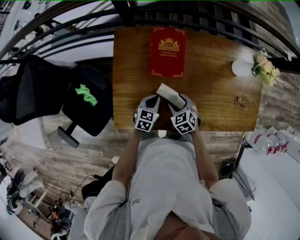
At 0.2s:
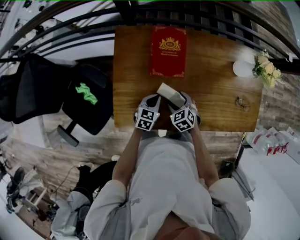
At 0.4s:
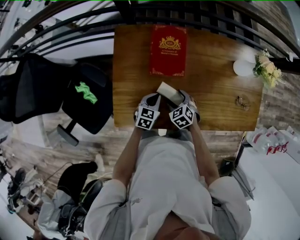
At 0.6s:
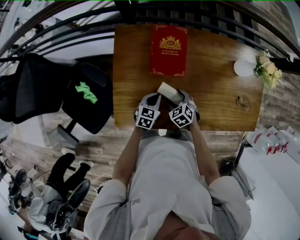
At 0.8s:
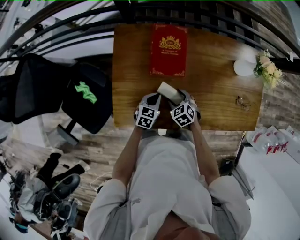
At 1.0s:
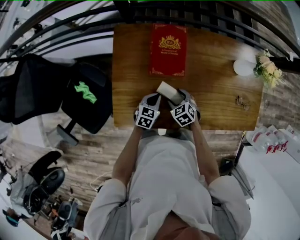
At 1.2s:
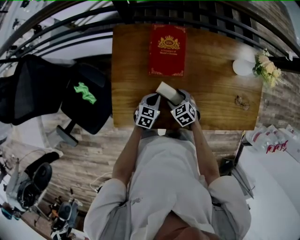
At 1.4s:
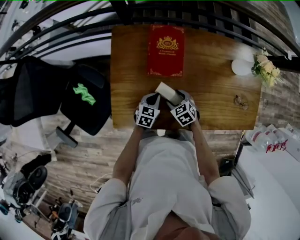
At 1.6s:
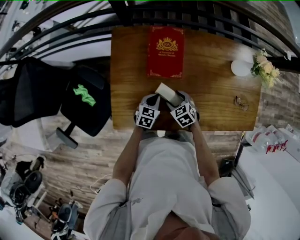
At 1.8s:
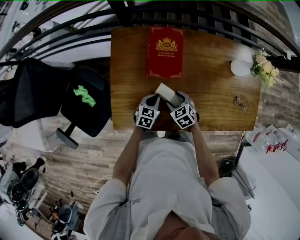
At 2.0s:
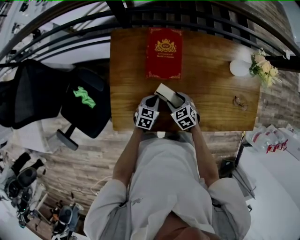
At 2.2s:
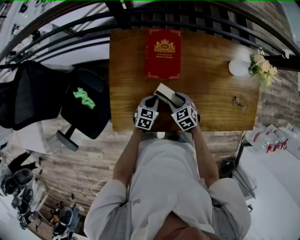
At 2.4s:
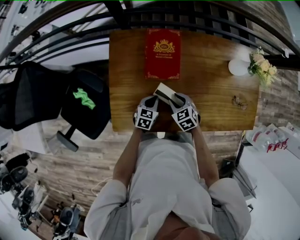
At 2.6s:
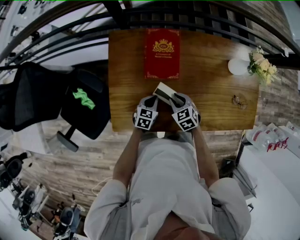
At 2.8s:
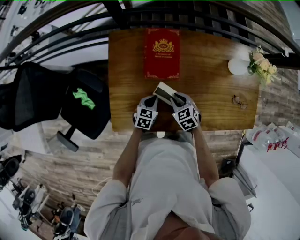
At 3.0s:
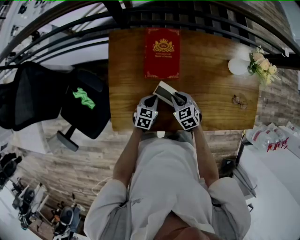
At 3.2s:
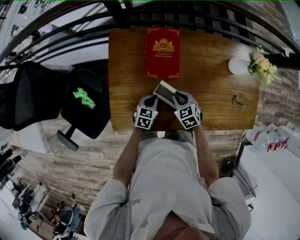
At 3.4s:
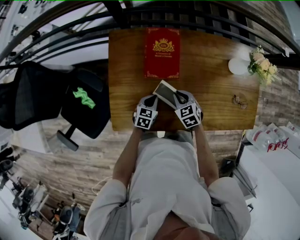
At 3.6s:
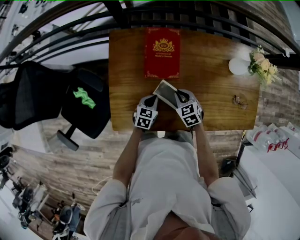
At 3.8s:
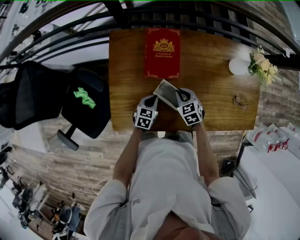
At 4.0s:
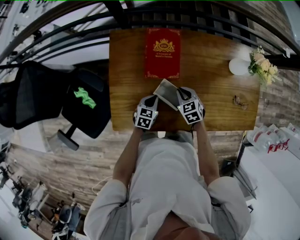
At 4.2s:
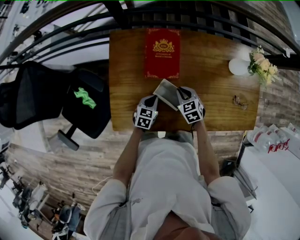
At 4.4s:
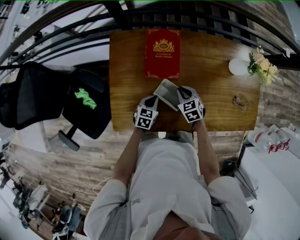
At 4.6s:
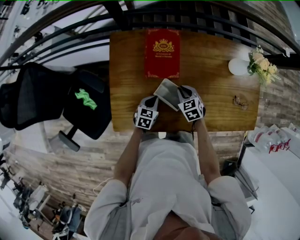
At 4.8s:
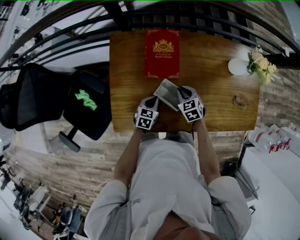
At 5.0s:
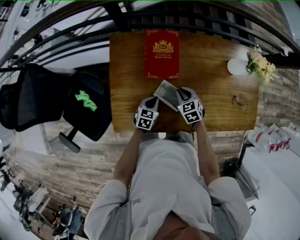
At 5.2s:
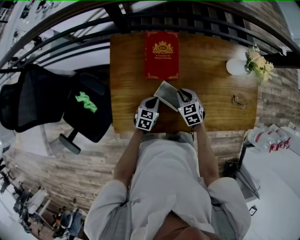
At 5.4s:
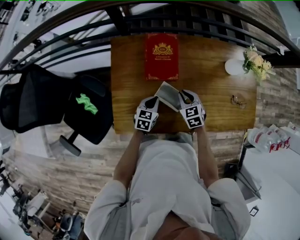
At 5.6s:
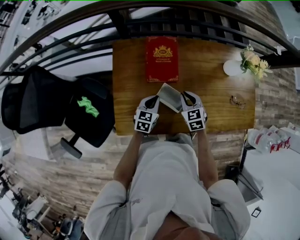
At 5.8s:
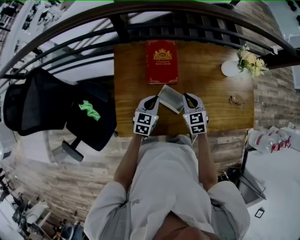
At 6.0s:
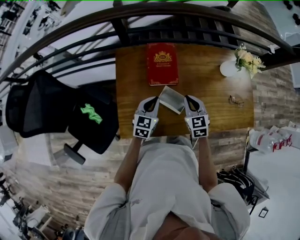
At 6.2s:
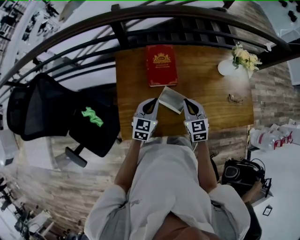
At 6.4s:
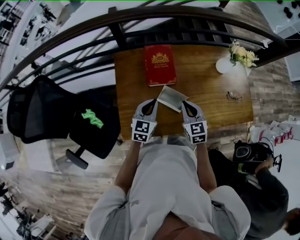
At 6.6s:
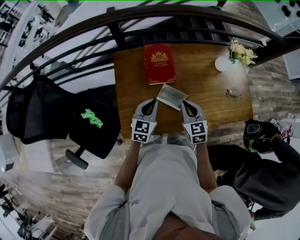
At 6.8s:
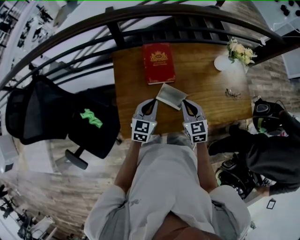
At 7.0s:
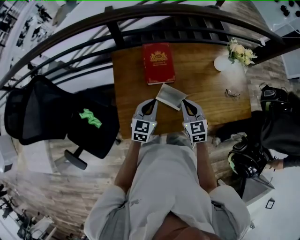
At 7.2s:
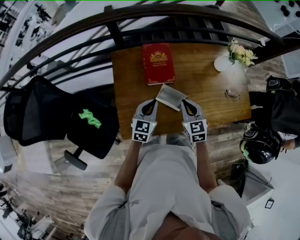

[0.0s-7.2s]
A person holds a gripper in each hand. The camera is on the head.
0.0s to 1.4s: The grippers stay close to where they were, moving slightly.
1.4s to 2.8s: The right gripper closes up.
2.8s to 4.4s: The right gripper ends up some 5 cm from where it was.
4.4s to 5.8s: The grippers both shift upward by some 10 cm.
5.8s to 7.2s: The right gripper is displaced backward by approximately 5 cm. Meanwhile the left gripper heads upward, covering roughly 5 cm.

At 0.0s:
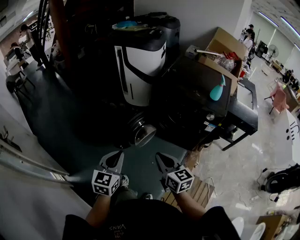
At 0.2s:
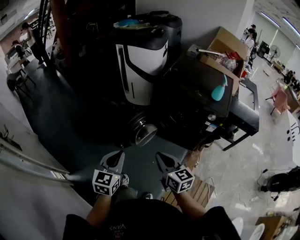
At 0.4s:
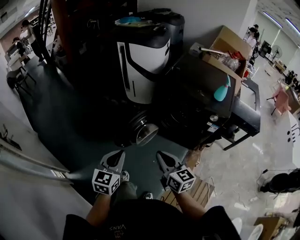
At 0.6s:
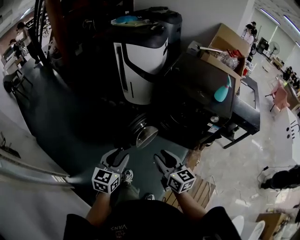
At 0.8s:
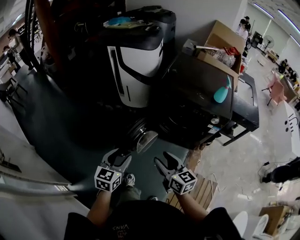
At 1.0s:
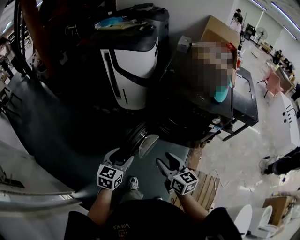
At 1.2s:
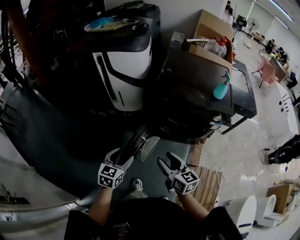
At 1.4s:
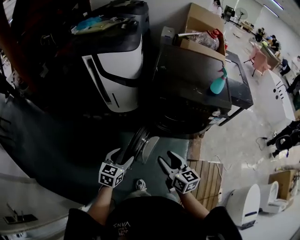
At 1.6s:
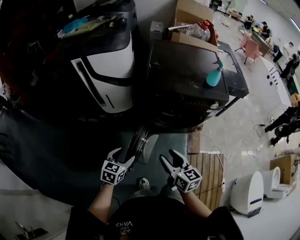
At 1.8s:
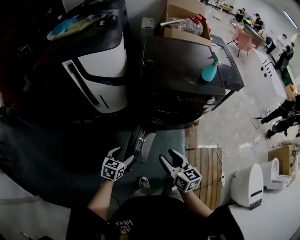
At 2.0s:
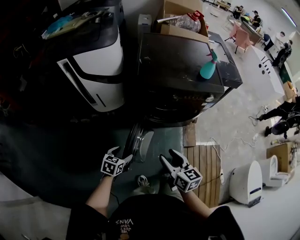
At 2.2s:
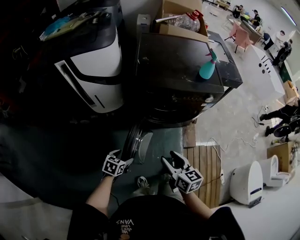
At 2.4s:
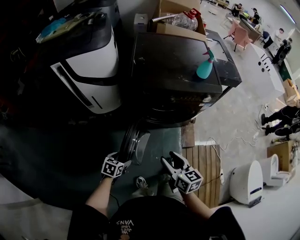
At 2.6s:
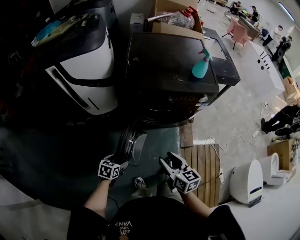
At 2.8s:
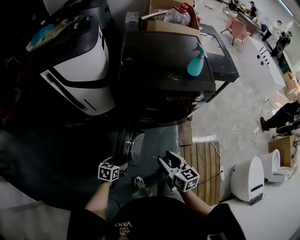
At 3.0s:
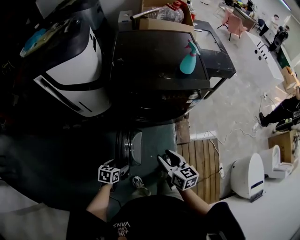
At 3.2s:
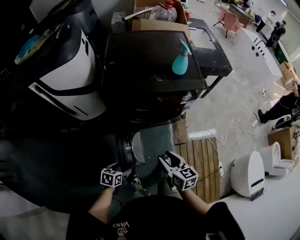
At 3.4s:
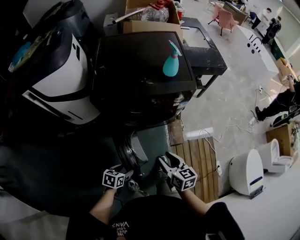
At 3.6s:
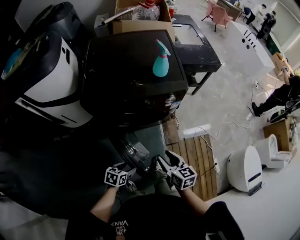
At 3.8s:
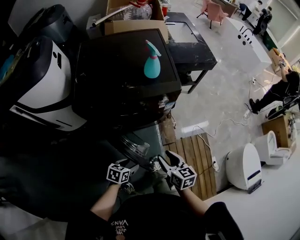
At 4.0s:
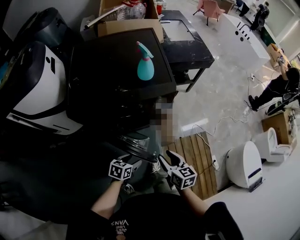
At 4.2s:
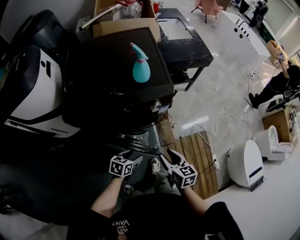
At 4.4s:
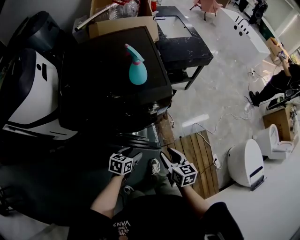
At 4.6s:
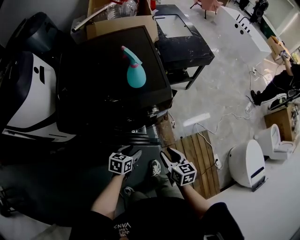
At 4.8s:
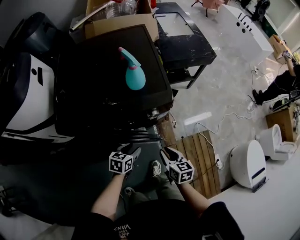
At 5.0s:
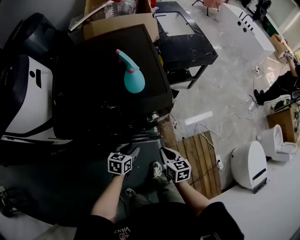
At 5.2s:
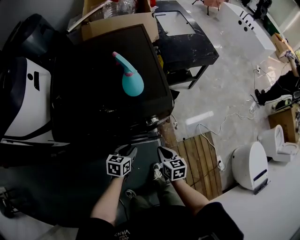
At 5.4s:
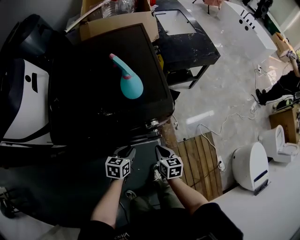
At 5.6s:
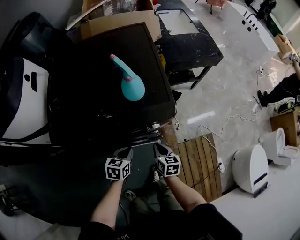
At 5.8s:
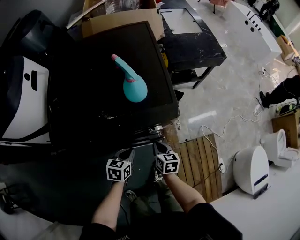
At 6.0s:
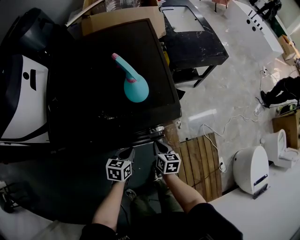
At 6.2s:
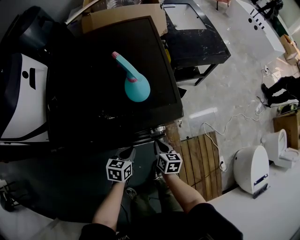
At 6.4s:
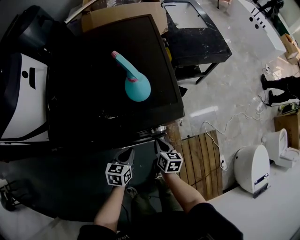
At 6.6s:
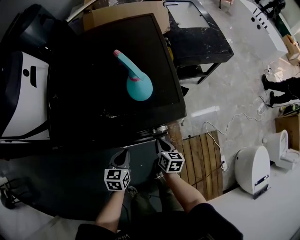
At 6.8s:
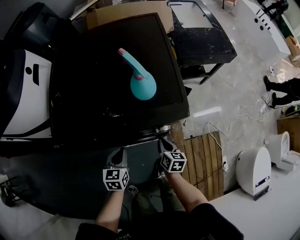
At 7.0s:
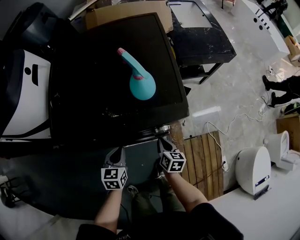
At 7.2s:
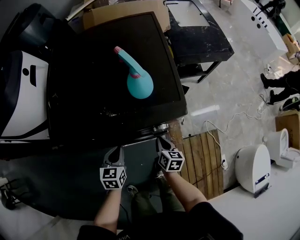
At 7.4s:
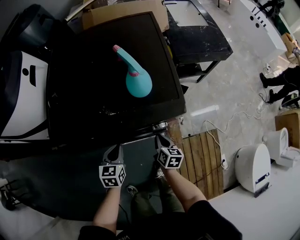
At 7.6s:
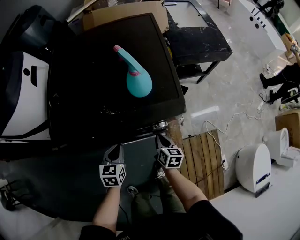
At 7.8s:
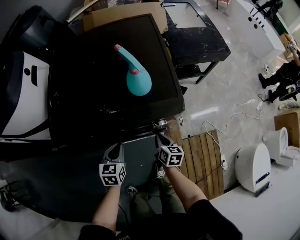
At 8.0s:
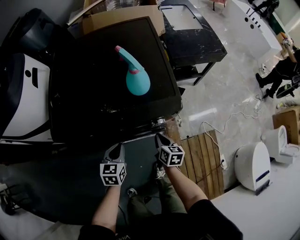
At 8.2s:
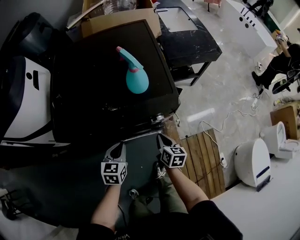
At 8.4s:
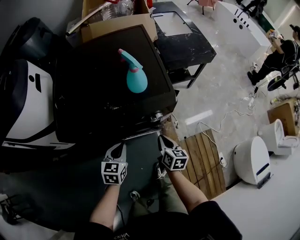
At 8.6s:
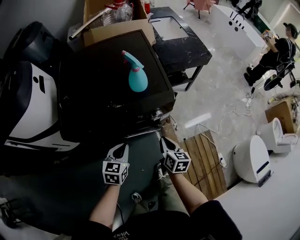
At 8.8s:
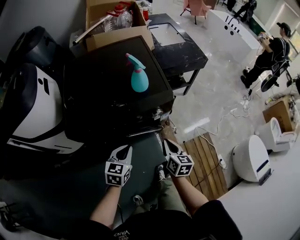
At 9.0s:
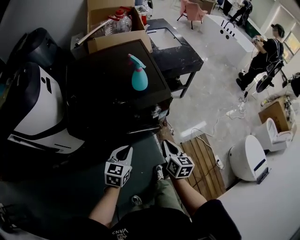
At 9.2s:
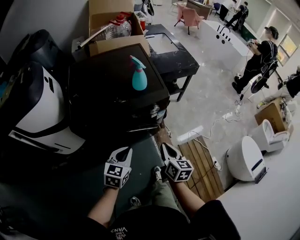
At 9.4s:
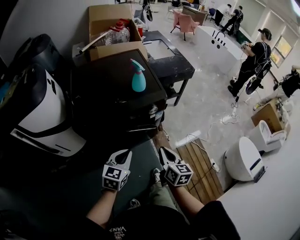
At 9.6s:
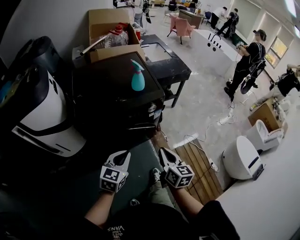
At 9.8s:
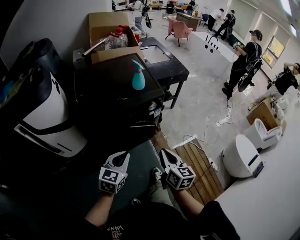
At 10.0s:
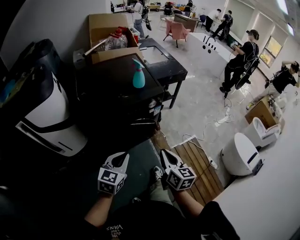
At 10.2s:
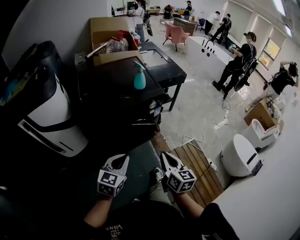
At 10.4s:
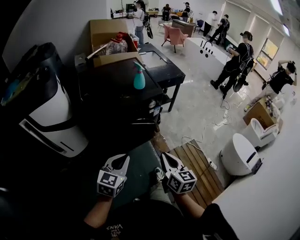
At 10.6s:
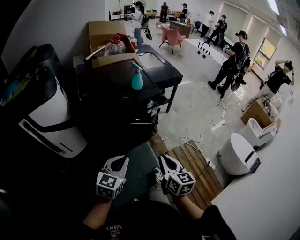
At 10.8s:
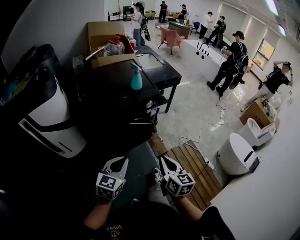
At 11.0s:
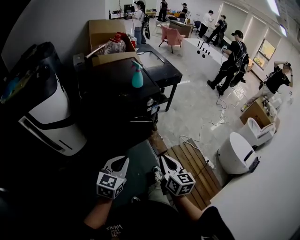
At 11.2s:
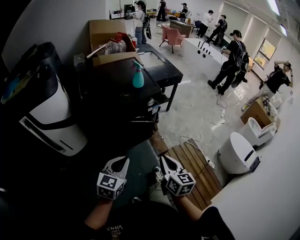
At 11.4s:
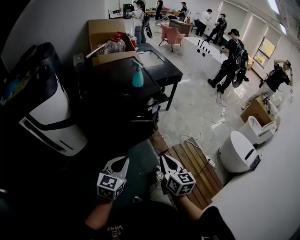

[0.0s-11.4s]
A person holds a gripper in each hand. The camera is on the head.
0.0s to 1.4s: The right gripper ends up roughly 20 cm from where it was, changes its angle by roughly 20 degrees, and opens. Meanwhile the left gripper changes place by about 30 cm, rotates approximately 30 degrees, and opens up.
1.4s to 2.8s: The right gripper heads to the right and downward, covering about 10 cm, while the left gripper is displaced downward by roughly 20 cm, and changes its angle by some 30 degrees.
2.8s to 4.2s: The two grippers go some 30 cm to the right and forward. The left gripper changes its angle by some 20 degrees.
4.2s to 5.6s: The left gripper shifts some 15 cm forward, and closes its fingers, while the right gripper moves forward and downward, roughly 20 cm, and closes its fingers.
5.6s to 7.2s: The left gripper is displaced to the left by approximately 5 cm.
7.2s to 8.6s: The right gripper goes roughly 15 cm upward and backward. The left gripper goes roughly 10 cm upward.
8.6s to 10.0s: The two grippers go roughly 30 cm backward and upward. The left gripper changes its angle by roughly 20 degrees.
10.0s to 11.4s: The two grippers go approximately 10 cm backward.

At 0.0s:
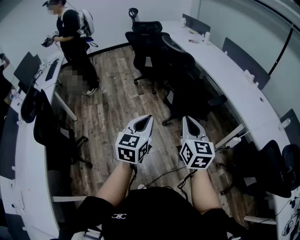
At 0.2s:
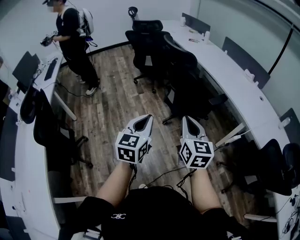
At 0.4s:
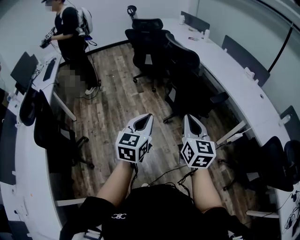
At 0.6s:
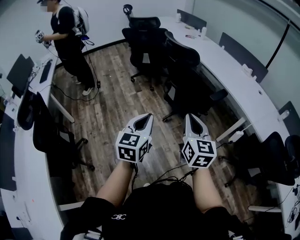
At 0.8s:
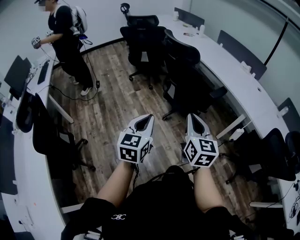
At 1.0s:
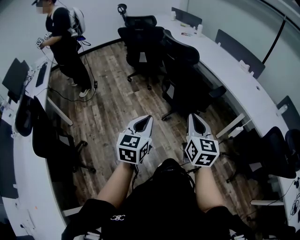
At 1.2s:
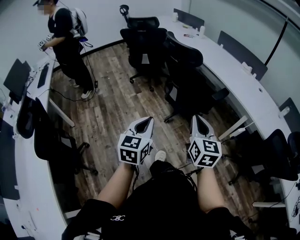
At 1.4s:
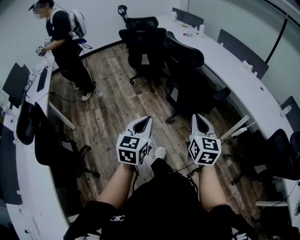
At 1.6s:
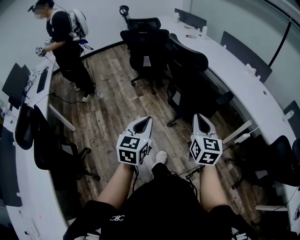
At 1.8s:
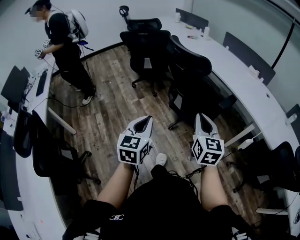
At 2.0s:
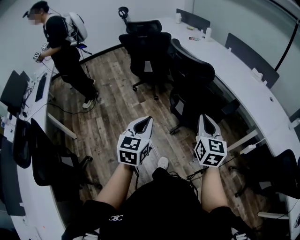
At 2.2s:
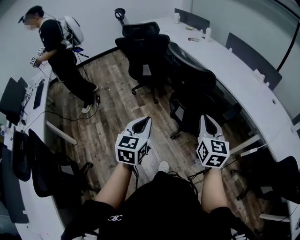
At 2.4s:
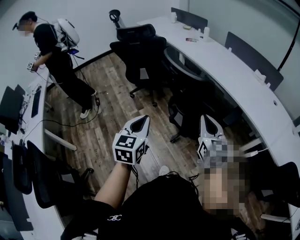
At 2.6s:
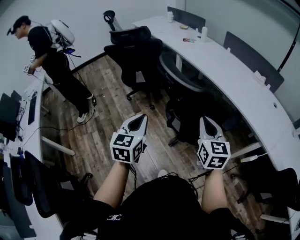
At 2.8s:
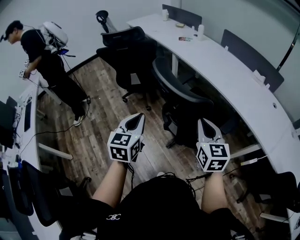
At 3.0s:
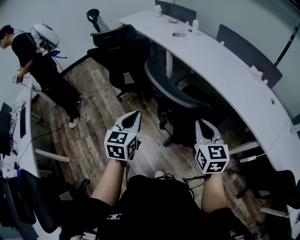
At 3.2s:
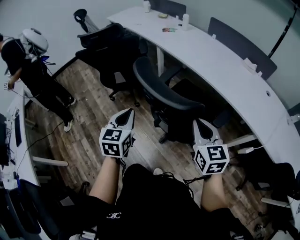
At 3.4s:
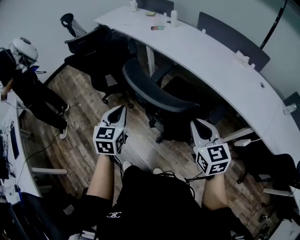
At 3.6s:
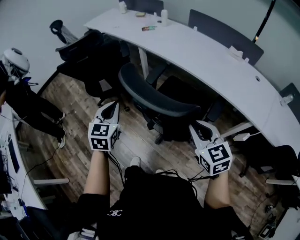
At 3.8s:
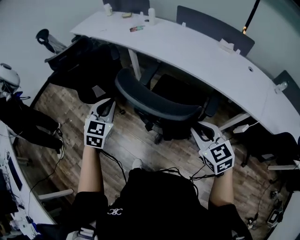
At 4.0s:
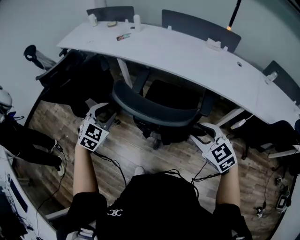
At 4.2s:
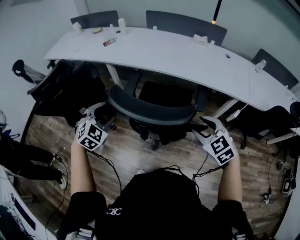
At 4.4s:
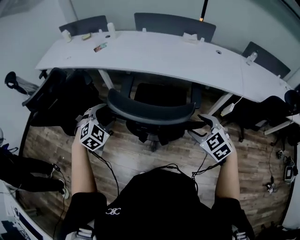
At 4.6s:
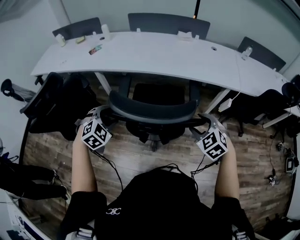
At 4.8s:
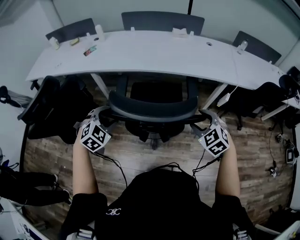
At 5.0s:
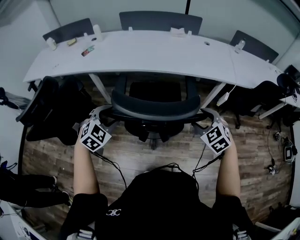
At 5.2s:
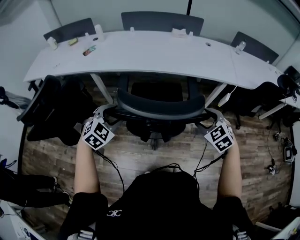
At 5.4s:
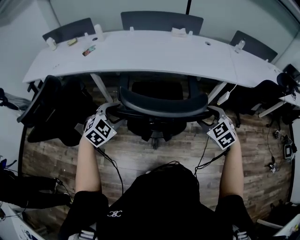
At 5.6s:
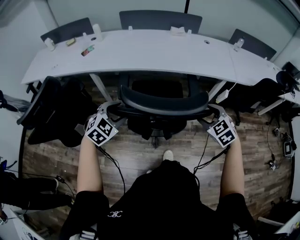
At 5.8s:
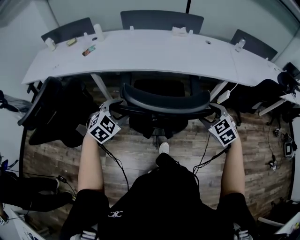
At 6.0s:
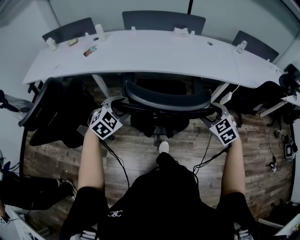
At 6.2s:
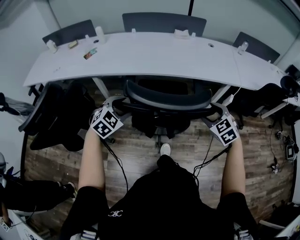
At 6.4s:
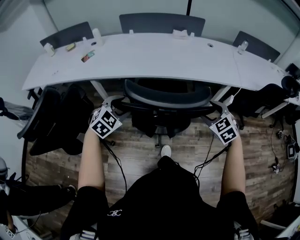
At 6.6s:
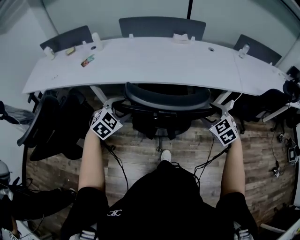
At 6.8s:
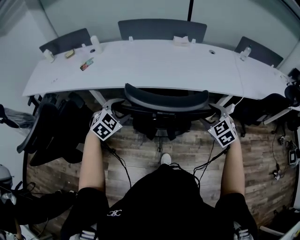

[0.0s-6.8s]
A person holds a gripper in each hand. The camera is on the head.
0.0s to 1.4s: The right gripper is displaced to the left by about 10 cm. The left gripper goes roughly 15 cm to the left.
1.4s to 2.8s: The two grippers travel together, forward, roughly 40 cm.
2.8s to 4.0s: The right gripper changes place by approximately 5 cm, turns by approximately 20 degrees, and opens up, while the left gripper travels forward by roughly 25 cm, rolls clockwise, seen from behind, by approximately 50 degrees, and opens its fingers.
4.0s to 5.4s: The left gripper changes place by approximately 10 cm, and swivels roughly 30 degrees, while the right gripper shifts by some 5 cm, and swivels about 30 degrees.
5.4s to 6.8s: The grippers both shift forward by approximately 15 cm.
